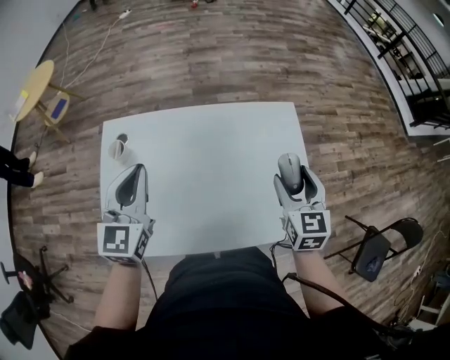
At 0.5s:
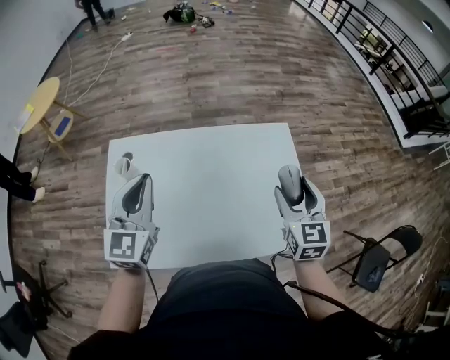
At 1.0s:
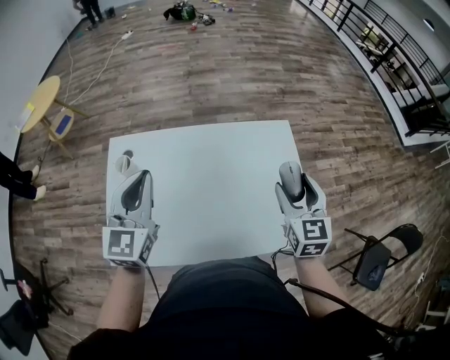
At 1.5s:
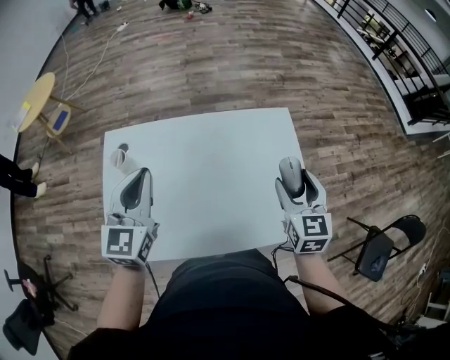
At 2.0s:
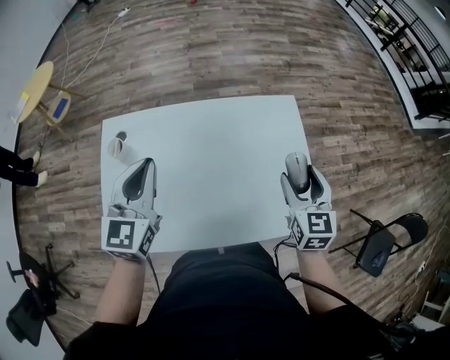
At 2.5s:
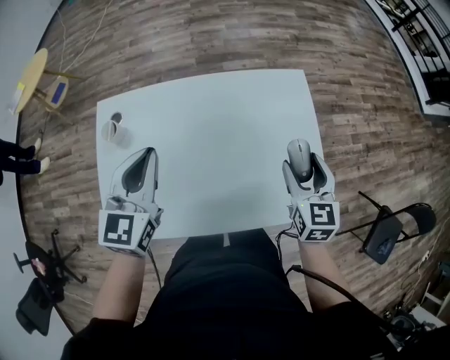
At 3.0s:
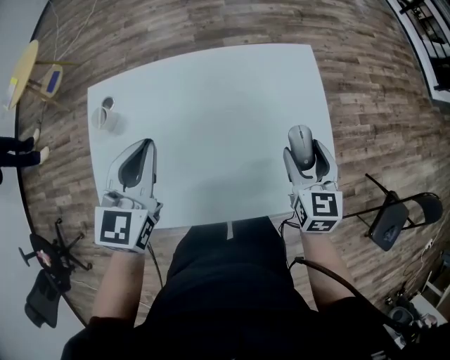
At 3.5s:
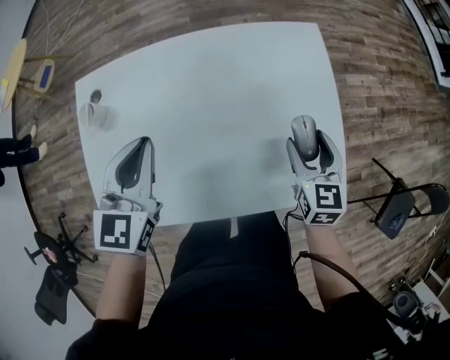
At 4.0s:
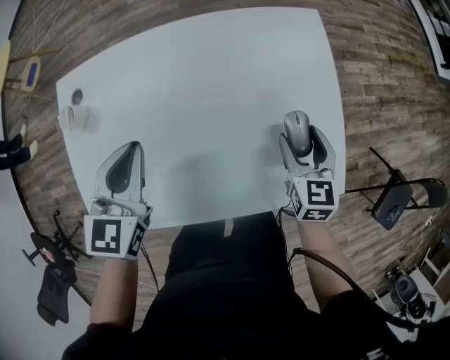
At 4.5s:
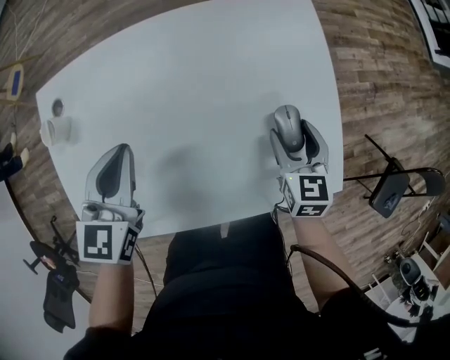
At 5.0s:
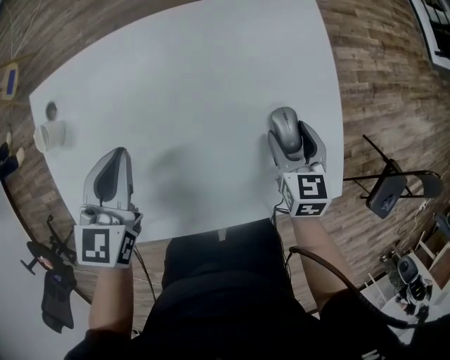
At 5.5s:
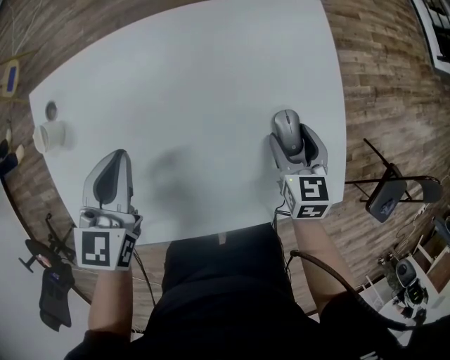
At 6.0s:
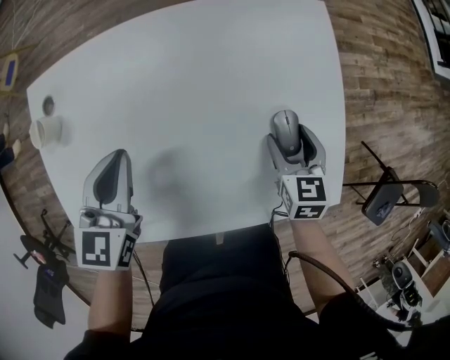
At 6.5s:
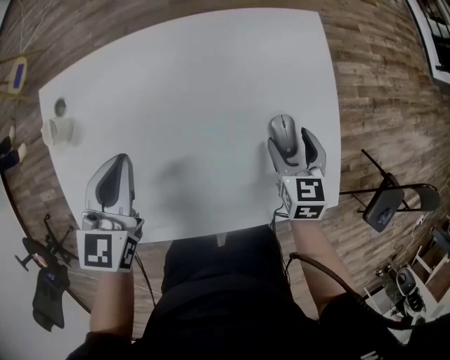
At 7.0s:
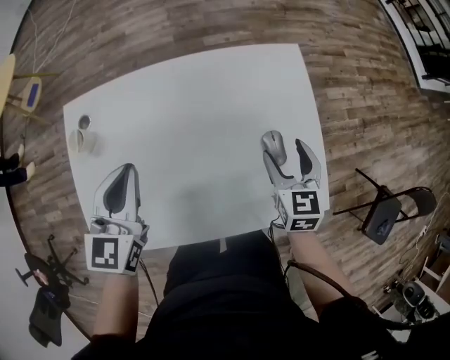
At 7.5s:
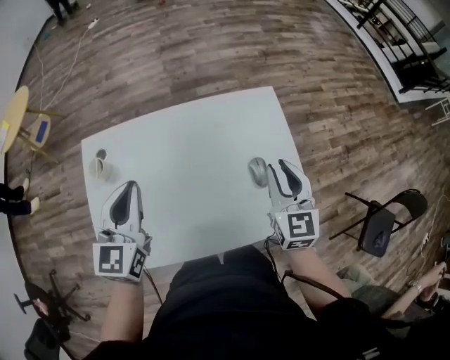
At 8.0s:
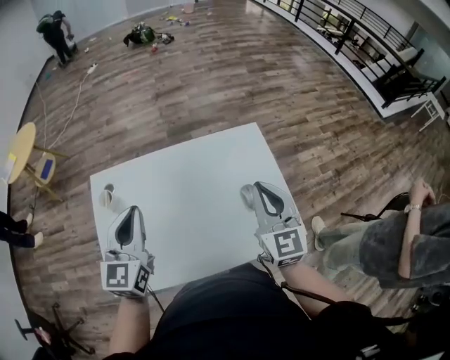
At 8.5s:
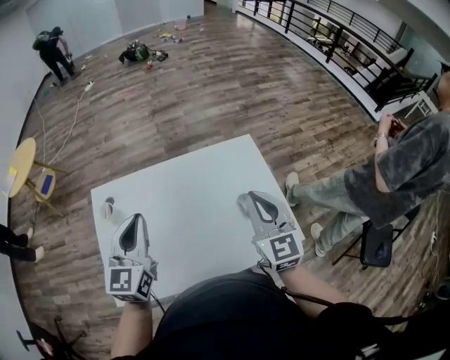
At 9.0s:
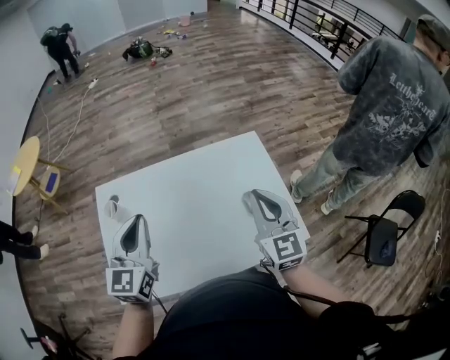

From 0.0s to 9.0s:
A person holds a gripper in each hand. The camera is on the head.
From 0.0s to 2.0s: The grippers make only small movements.
From 2.0s to 4.5s: Both grippers move downward, about 15 cm. The left gripper rotates approximately 20 degrees.
From 4.5s to 7.0s: The right gripper travels upward by approximately 5 cm.
From 7.0s to 9.0s: The right gripper shifts roughly 20 cm upward, rotates about 30 degrees, and closes; the left gripper moves upward, approximately 10 cm.

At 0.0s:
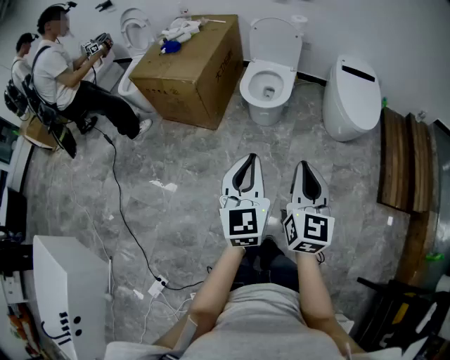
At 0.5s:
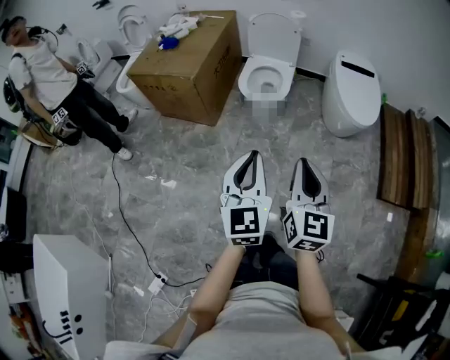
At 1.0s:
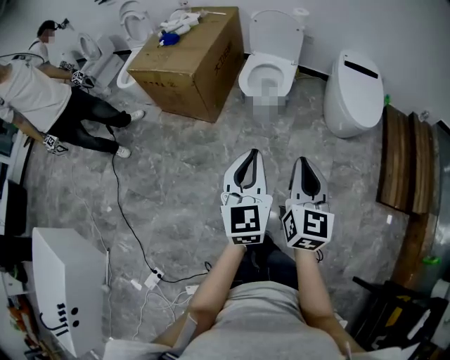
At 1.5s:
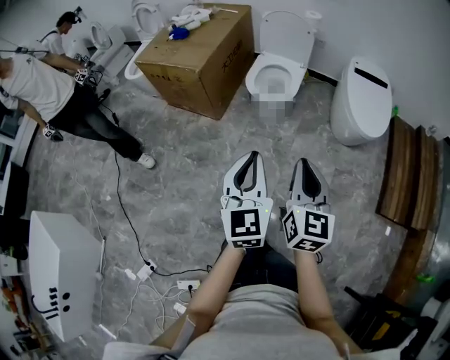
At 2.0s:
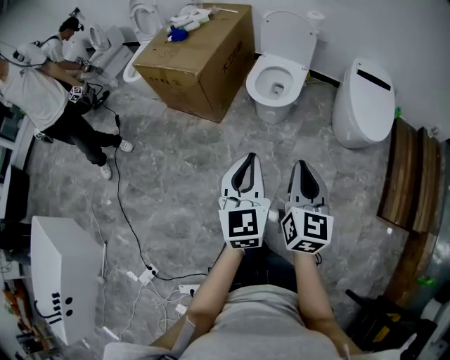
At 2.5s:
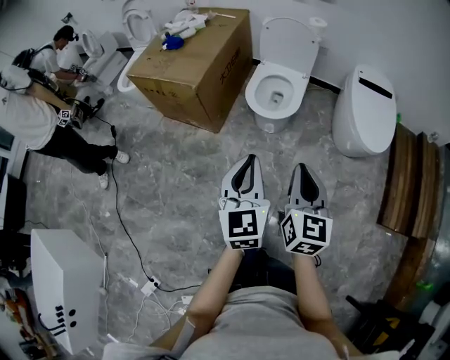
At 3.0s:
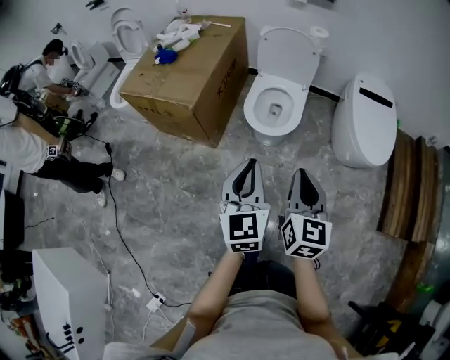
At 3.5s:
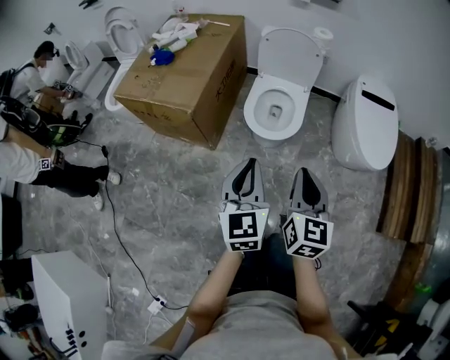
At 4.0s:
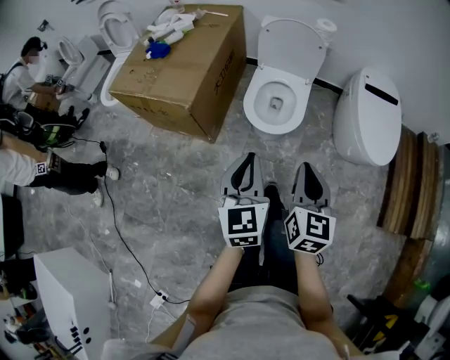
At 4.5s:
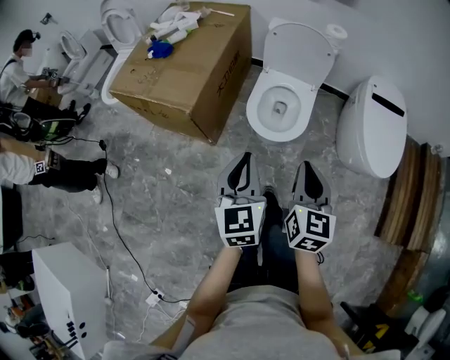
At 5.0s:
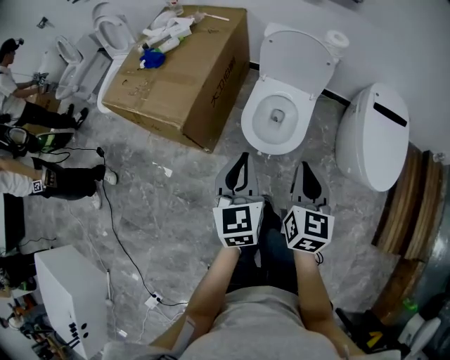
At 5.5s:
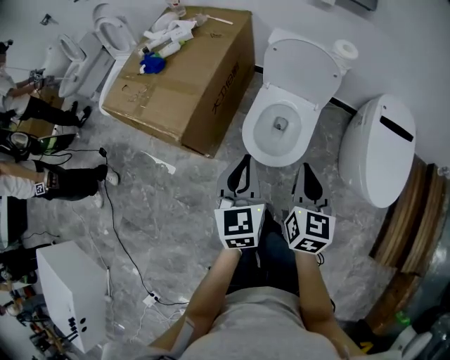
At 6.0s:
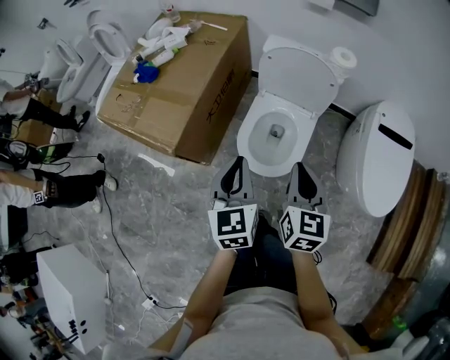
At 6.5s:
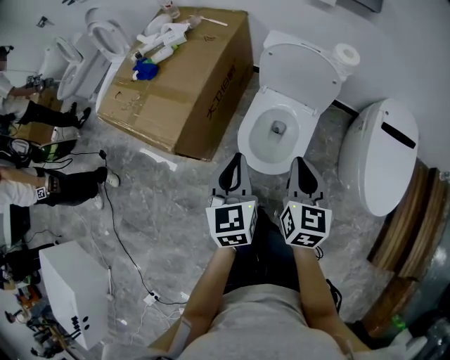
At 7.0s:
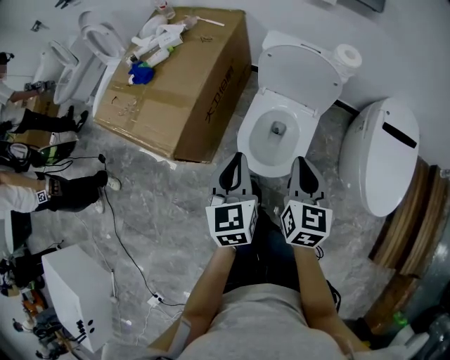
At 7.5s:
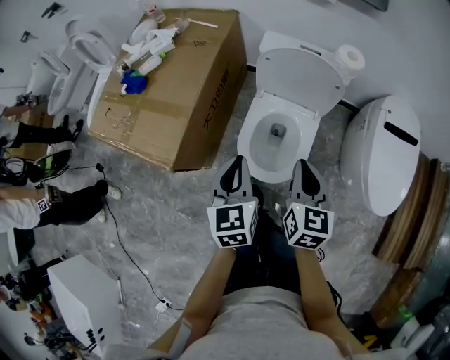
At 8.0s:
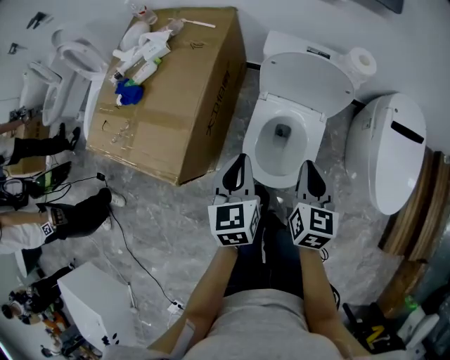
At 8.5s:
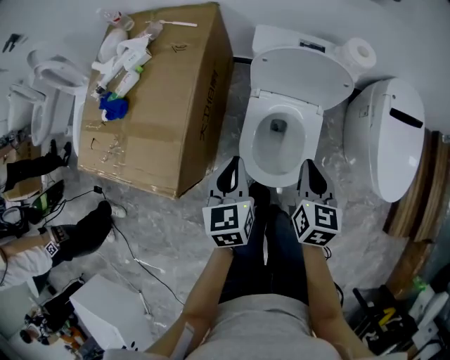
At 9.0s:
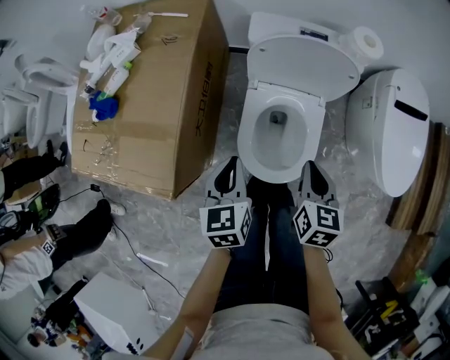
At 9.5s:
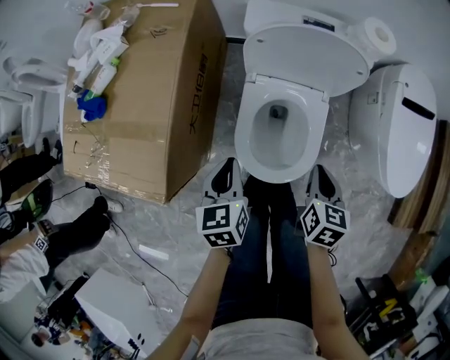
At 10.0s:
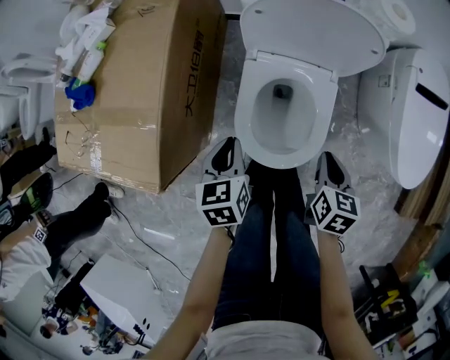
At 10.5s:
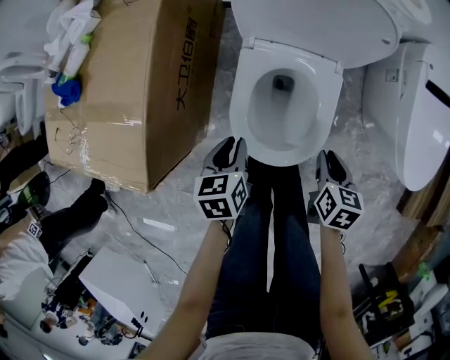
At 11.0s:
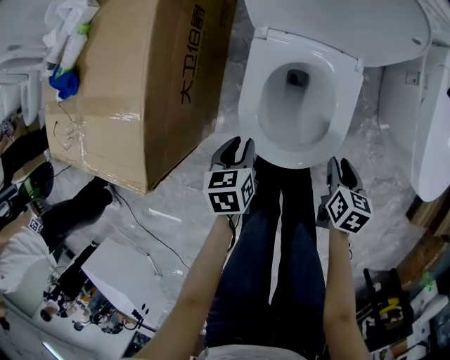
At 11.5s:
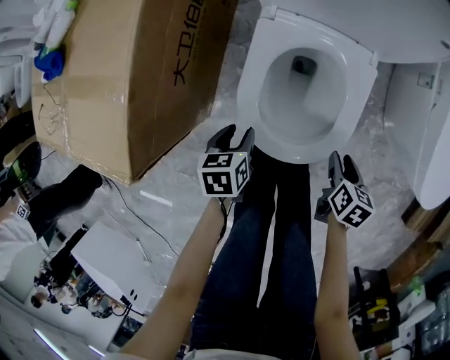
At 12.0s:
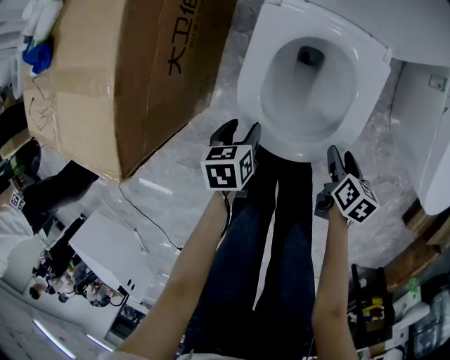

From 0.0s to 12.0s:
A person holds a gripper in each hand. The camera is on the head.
From 0.0s to 2.0s: The two grippers go approximately 5 cm forward.
From 2.0s to 4.0s: Both grippers travel together forward, roughly 25 cm.
From 4.0s to 6.0s: Both grippers travel together forward, some 25 cm.
From 6.0s to 8.0s: Both grippers travel together forward and downward, about 15 cm.
From 8.0s to 10.0s: Both grippers move downward, approximately 20 cm. The left gripper swivels roughly 20 degrees. The right gripper swivels some 20 degrees.
From 10.0s to 12.0s: The grippers both shift downward by approximately 25 cm. The left gripper changes its angle by some 20 degrees, and opens, while the right gripper rotates some 20 degrees, and opens.

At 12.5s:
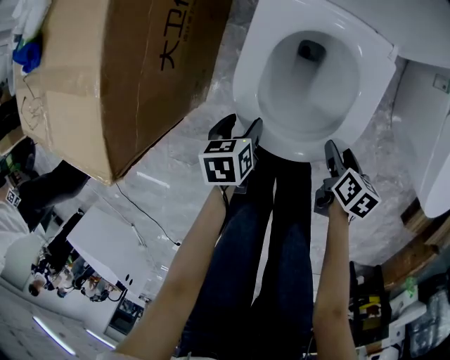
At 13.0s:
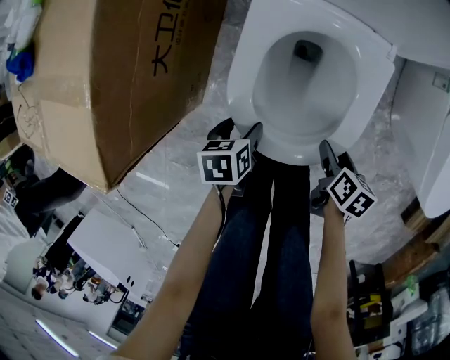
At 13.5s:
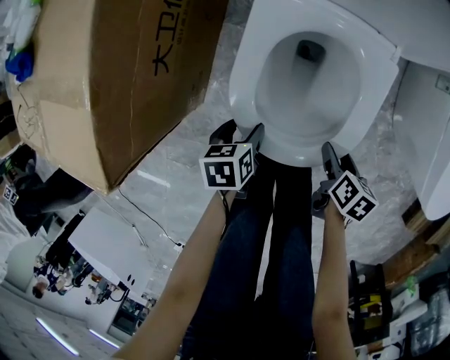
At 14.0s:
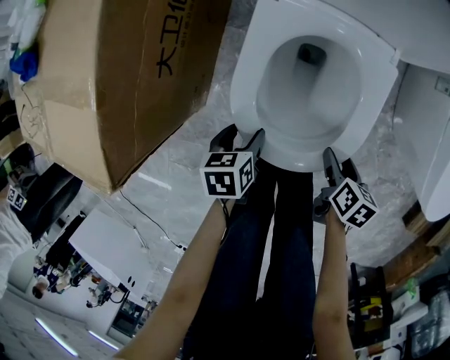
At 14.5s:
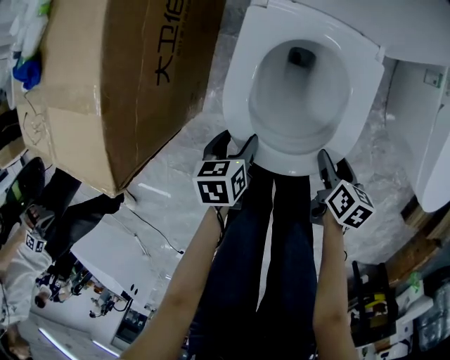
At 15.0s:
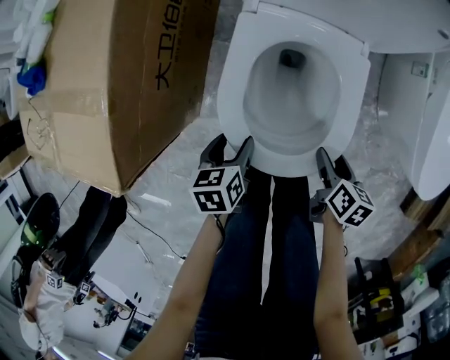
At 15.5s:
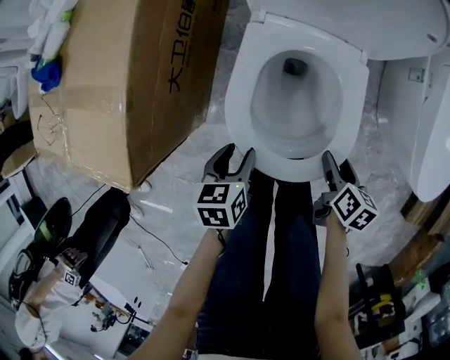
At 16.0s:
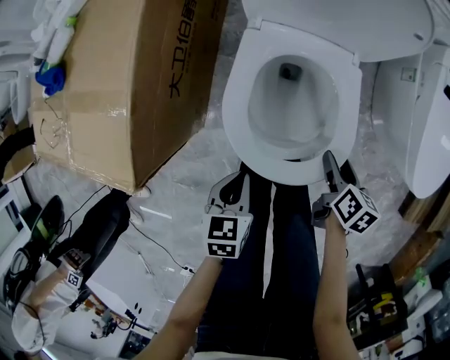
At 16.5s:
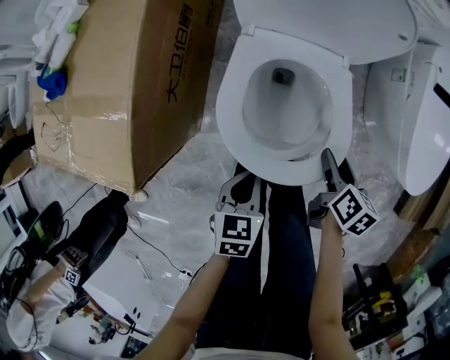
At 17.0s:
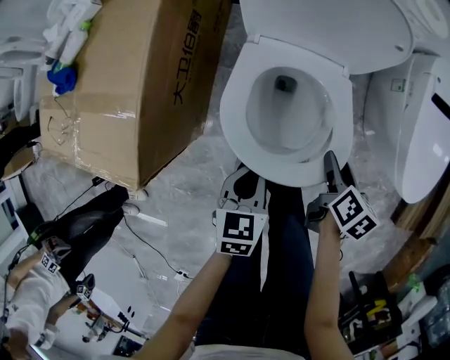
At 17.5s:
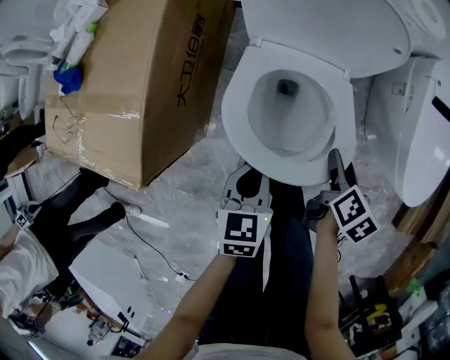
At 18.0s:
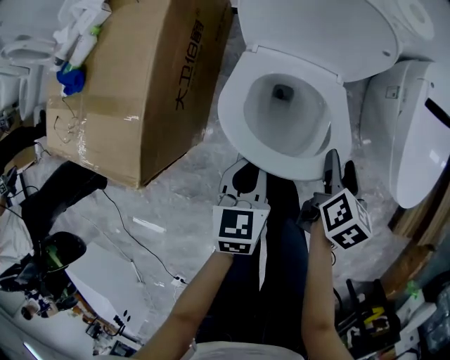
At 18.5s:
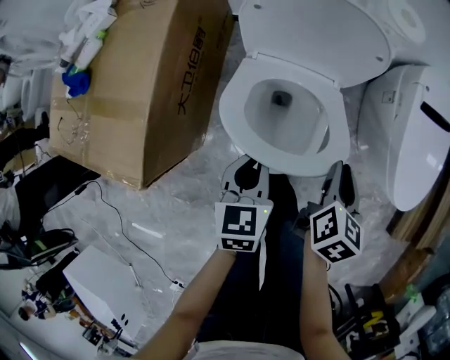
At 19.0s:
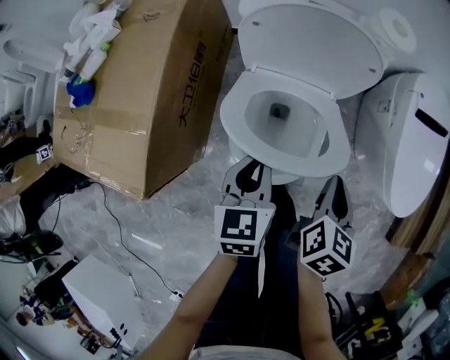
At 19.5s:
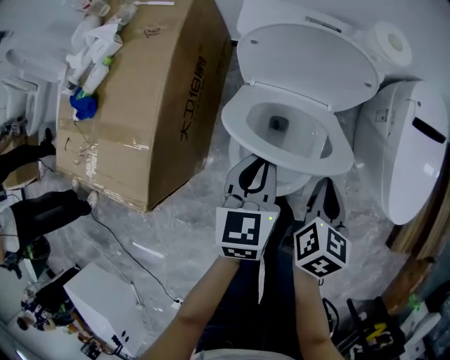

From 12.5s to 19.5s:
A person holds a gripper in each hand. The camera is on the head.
From 12.5s to 14.5s: The grippers move only a little.
From 14.5s to 16.0s: Both grippers move upward, some 10 cm. The left gripper closes its fingers.
From 16.0s to 17.5s: The right gripper heads upward and forward, covering approximately 10 cm. The left gripper goes roughly 10 cm forward and upward.
From 17.5s to 19.5s: The left gripper moves forward and upward, some 15 cm; the right gripper goes roughly 10 cm upward, and closes up.
